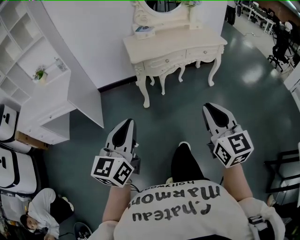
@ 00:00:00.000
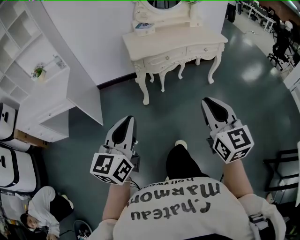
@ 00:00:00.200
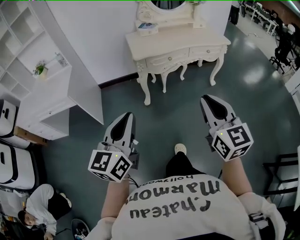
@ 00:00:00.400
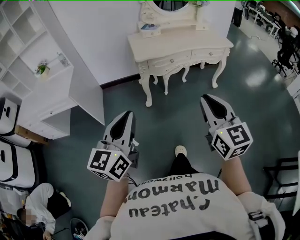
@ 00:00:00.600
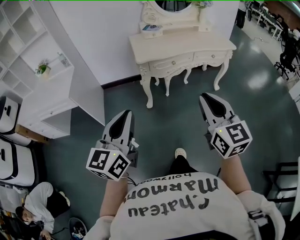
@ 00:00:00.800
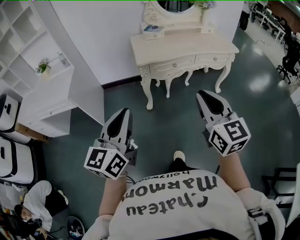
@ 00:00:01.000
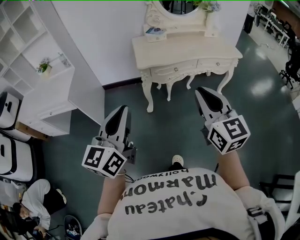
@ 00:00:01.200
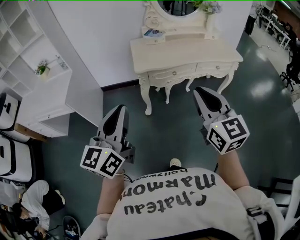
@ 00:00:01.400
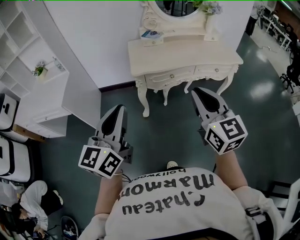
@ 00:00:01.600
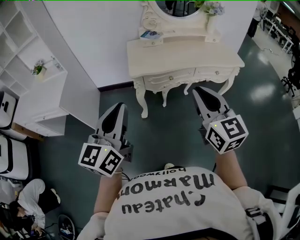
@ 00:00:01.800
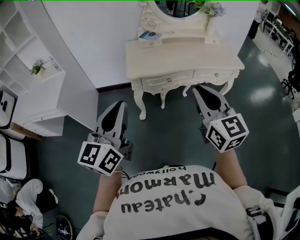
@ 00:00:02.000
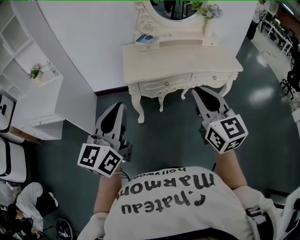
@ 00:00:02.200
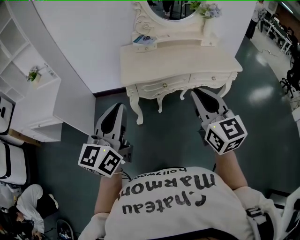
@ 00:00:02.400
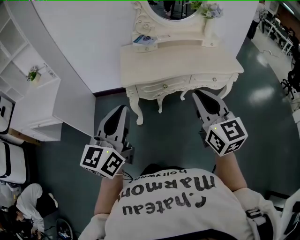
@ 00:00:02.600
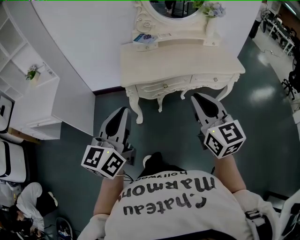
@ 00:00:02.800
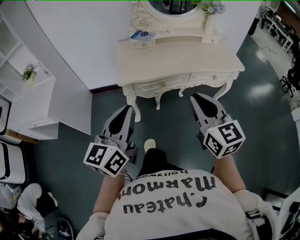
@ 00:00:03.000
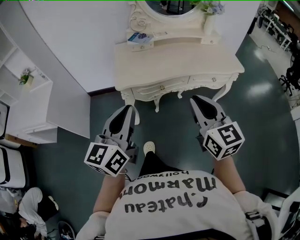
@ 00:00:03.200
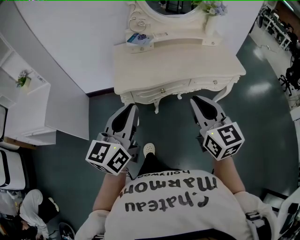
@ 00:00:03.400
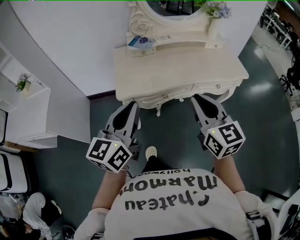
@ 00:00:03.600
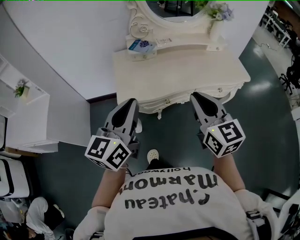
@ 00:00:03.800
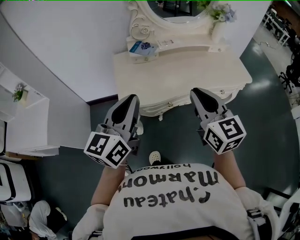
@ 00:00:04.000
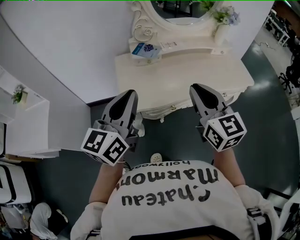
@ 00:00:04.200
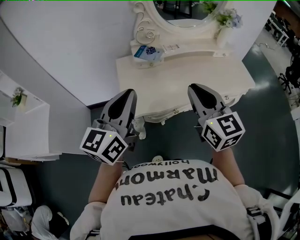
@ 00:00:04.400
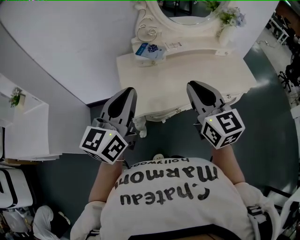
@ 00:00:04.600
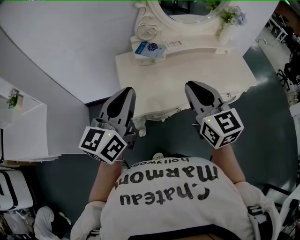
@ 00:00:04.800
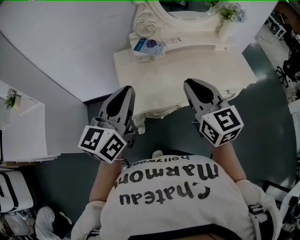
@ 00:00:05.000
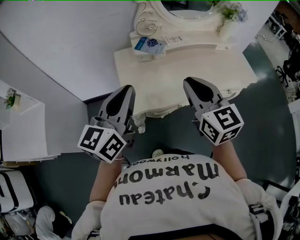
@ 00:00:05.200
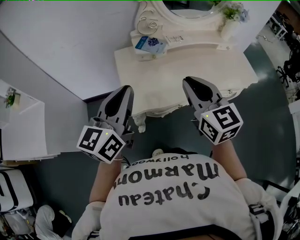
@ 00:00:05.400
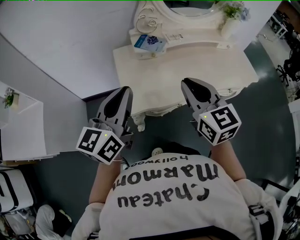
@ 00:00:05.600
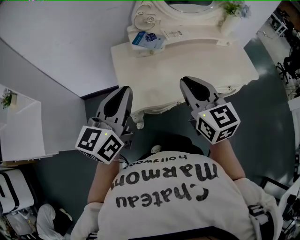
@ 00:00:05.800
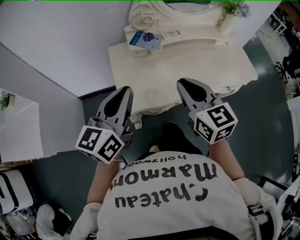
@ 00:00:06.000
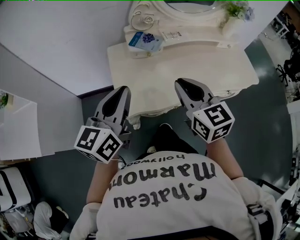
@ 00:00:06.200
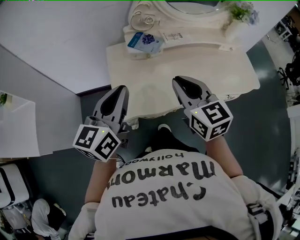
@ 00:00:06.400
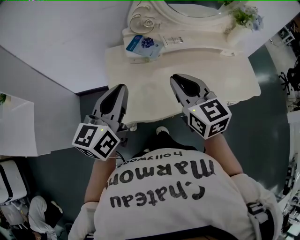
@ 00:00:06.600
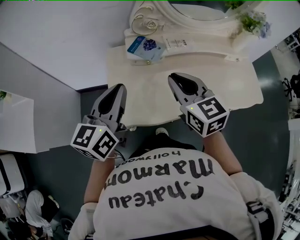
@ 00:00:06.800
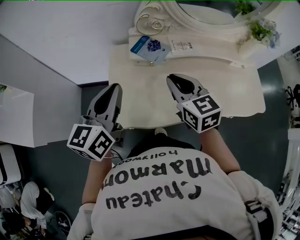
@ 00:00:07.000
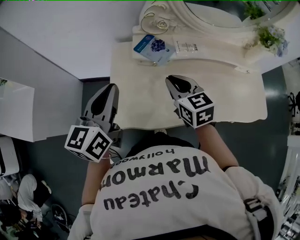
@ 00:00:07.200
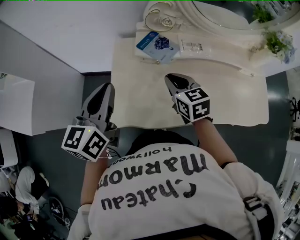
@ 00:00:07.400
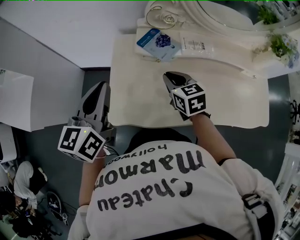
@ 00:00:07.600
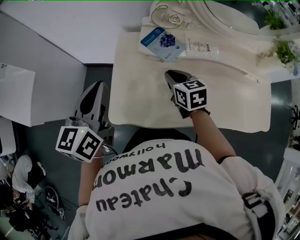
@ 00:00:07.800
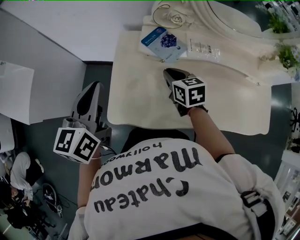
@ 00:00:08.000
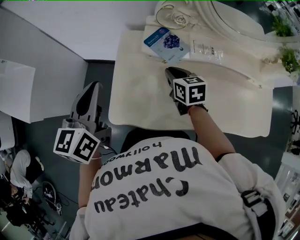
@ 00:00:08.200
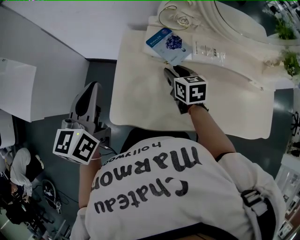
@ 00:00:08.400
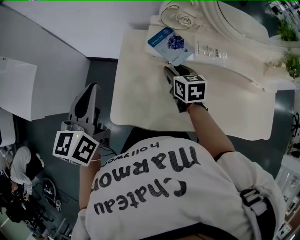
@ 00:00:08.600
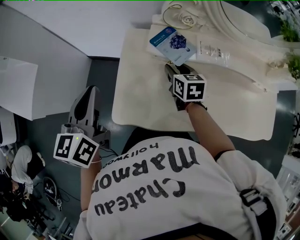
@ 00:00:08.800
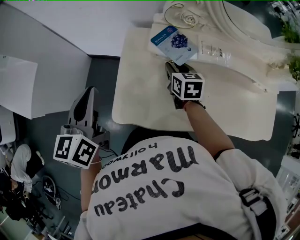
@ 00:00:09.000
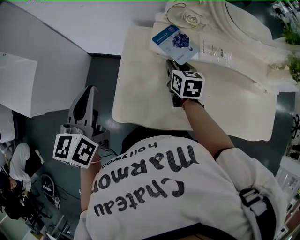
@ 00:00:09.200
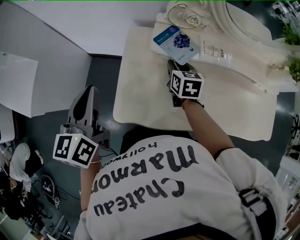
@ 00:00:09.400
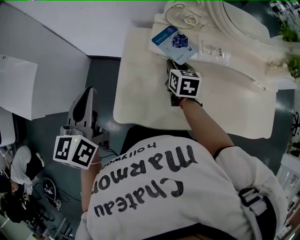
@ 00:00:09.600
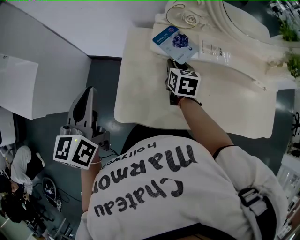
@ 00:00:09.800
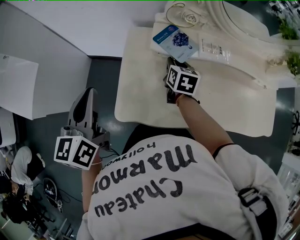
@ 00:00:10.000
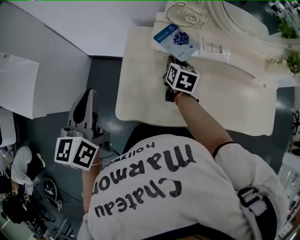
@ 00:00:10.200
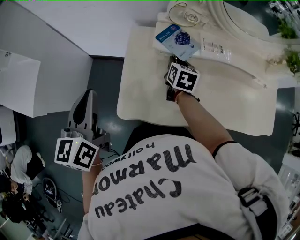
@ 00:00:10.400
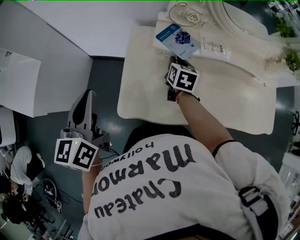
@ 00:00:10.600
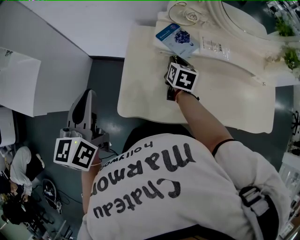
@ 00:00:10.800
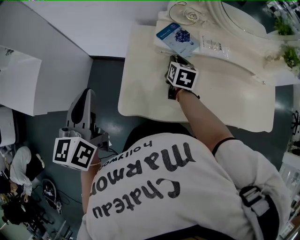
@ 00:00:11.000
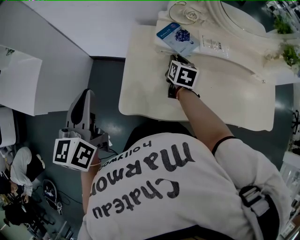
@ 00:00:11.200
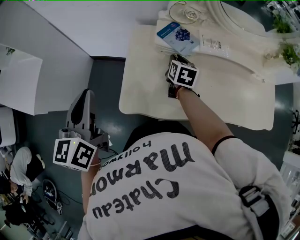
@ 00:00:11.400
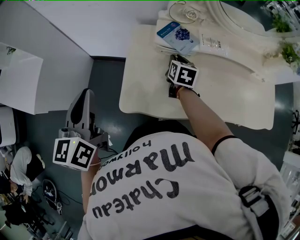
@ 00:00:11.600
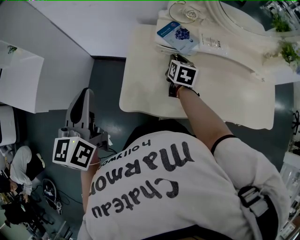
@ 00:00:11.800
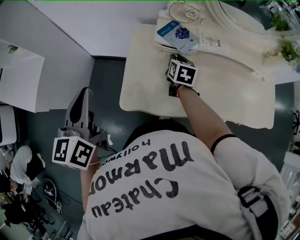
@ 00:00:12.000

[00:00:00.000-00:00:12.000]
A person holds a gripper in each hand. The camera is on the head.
00:00:00.000 to 00:00:01.600: The two grippers go some 20 cm forward.
00:00:01.600 to 00:00:03.000: Both grippers travel together forward and to the right, about 15 cm.
00:00:03.000 to 00:00:04.400: Both grippers move forward, roughly 25 cm.
00:00:04.400 to 00:00:06.000: Both grippers travel together downward, about 5 cm.
00:00:06.000 to 00:00:07.600: The right gripper travels forward and downward by about 25 cm, and swivels some 30 degrees, while the left gripper moves forward, roughly 10 cm, and rotates some 30 degrees.
00:00:07.600 to 00:00:09.000: The left gripper heads to the left, covering some 5 cm, while the right gripper moves forward, roughly 10 cm, and opens up.
00:00:09.000 to 00:00:10.400: There are only small adjustments of the grippers.
00:00:10.400 to 00:00:12.000: The grippers stay close to where they were, moving slightly.

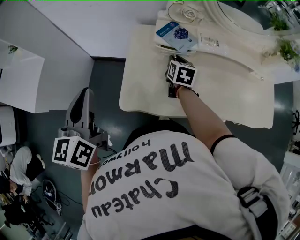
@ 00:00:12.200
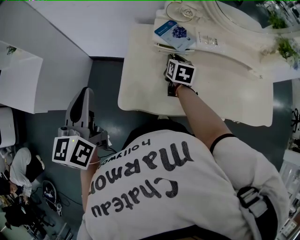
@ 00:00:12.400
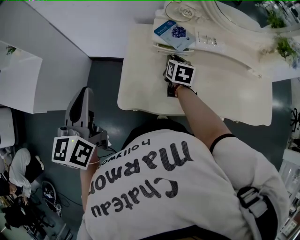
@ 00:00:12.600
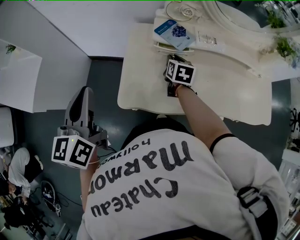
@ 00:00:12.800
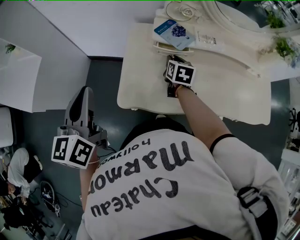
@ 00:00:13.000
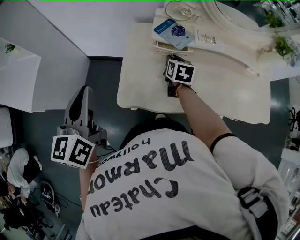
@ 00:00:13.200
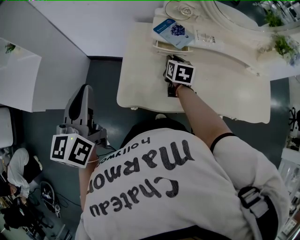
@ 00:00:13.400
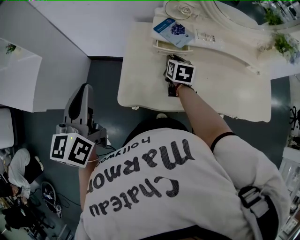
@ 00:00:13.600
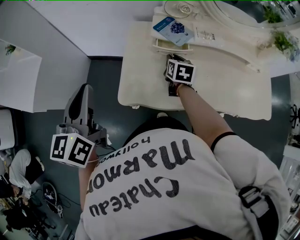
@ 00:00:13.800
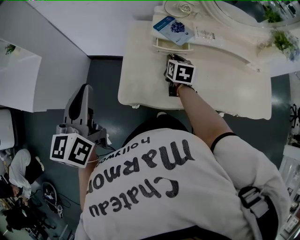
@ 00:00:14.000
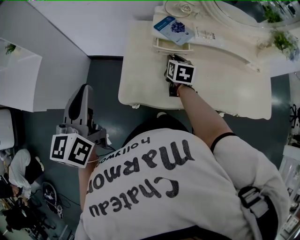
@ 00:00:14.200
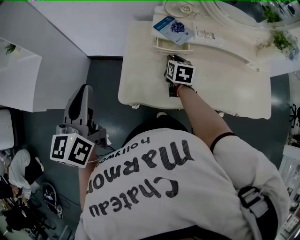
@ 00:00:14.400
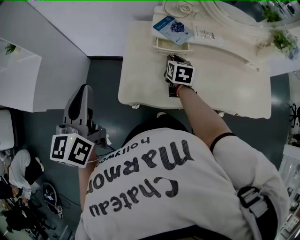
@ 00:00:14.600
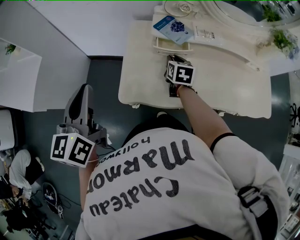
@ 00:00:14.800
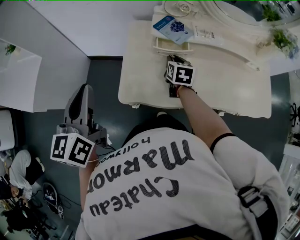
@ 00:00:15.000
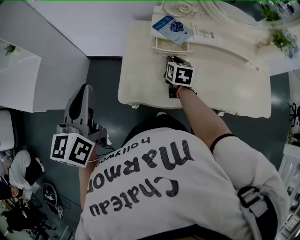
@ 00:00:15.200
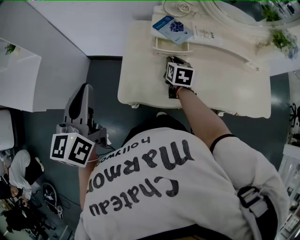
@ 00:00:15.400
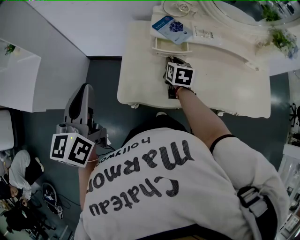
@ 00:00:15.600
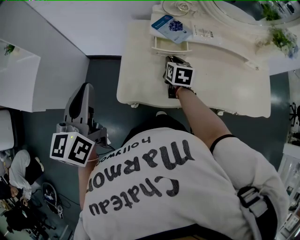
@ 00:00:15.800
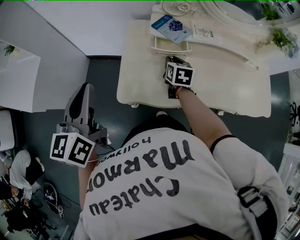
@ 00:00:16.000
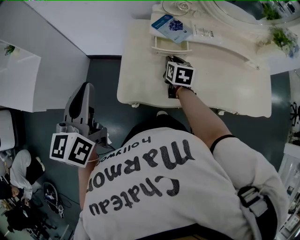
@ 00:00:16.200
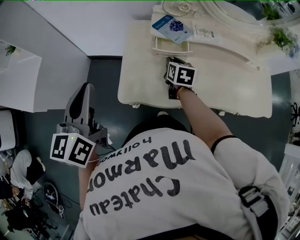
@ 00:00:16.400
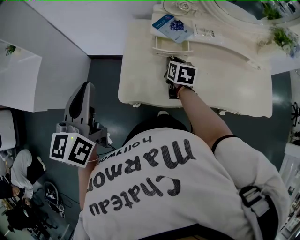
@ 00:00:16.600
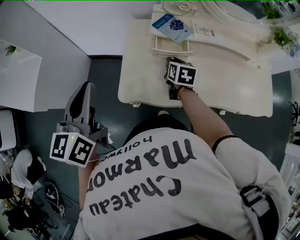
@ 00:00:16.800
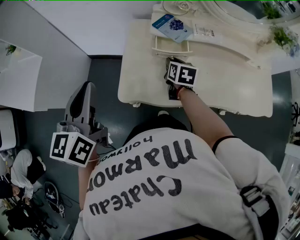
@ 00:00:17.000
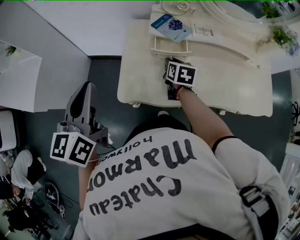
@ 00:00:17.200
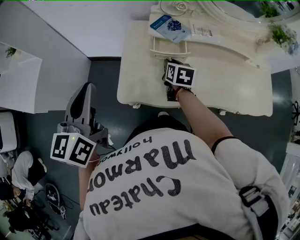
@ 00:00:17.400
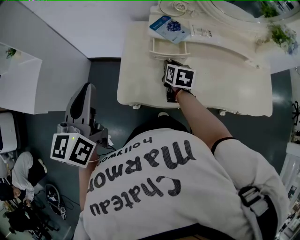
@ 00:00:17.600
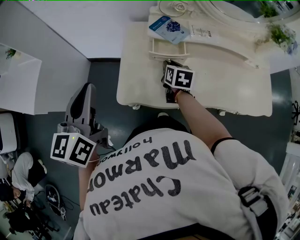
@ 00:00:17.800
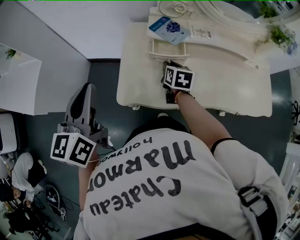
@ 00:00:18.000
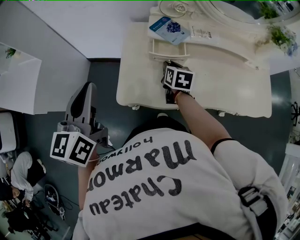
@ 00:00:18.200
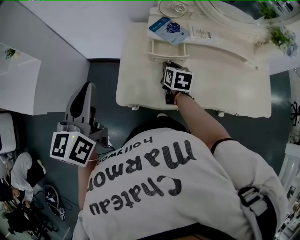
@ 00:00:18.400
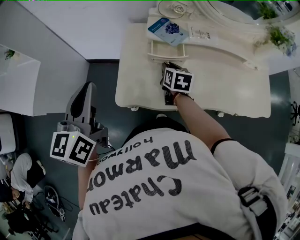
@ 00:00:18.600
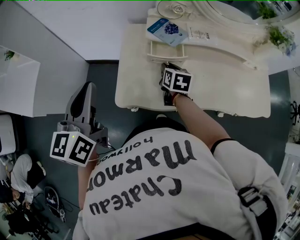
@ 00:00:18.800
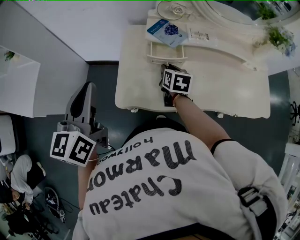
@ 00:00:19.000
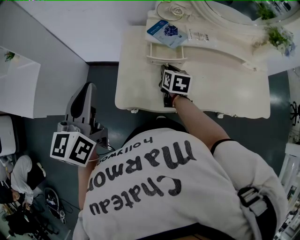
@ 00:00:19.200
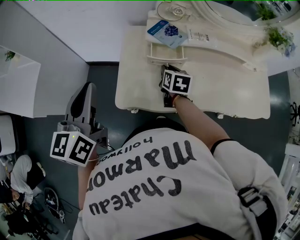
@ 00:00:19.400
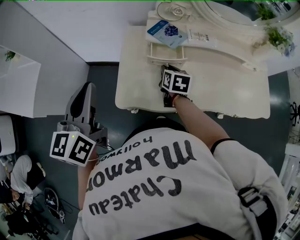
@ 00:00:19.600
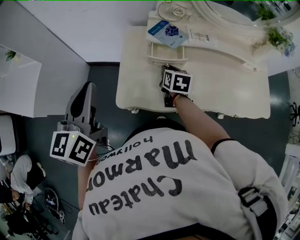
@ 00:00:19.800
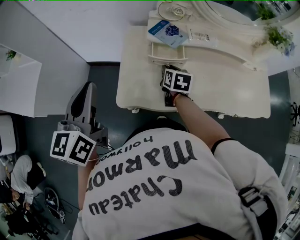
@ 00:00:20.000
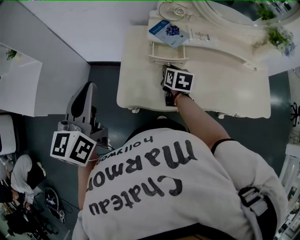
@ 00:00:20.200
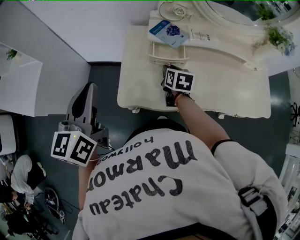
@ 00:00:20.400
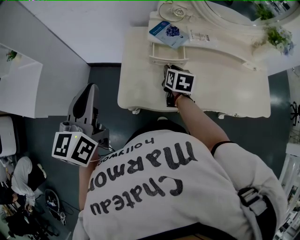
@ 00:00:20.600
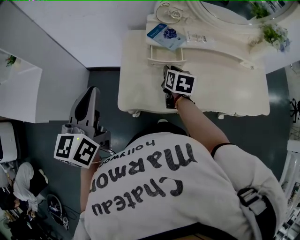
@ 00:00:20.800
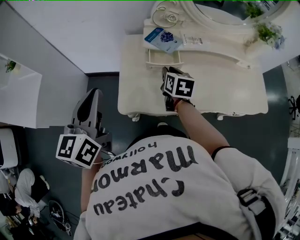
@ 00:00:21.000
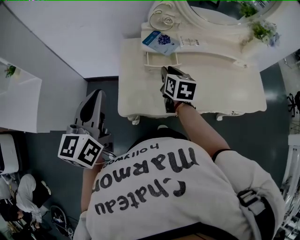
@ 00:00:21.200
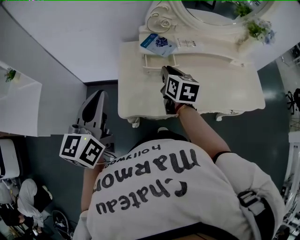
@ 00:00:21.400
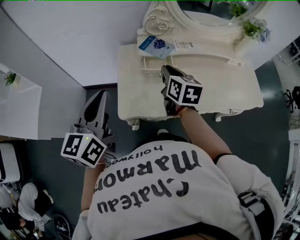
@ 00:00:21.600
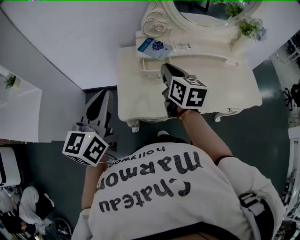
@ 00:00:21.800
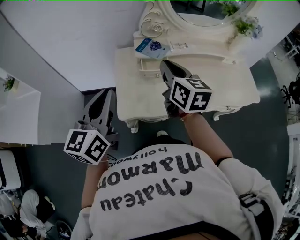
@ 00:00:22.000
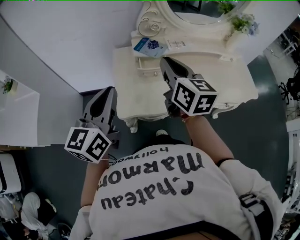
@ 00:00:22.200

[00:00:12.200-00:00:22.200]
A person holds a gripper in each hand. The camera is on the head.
00:00:12.200 to 00:00:15.000: There are only small adjustments of the grippers.
00:00:15.000 to 00:00:16.400: Neither gripper changes place.
00:00:16.400 to 00:00:18.000: There are only small adjustments of the grippers.
00:00:18.000 to 00:00:19.400: Neither gripper changes place.
00:00:19.400 to 00:00:20.800: The grippers stay close to where they were, moving slightly.
00:00:20.800 to 00:00:22.200: The left gripper shifts approximately 5 cm to the right. Meanwhile the right gripper moves upward, approximately 25 cm, and points its fingers roughly 30 degrees further upward.

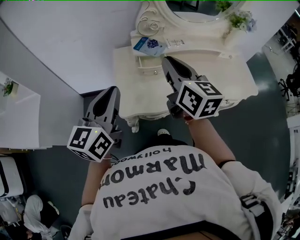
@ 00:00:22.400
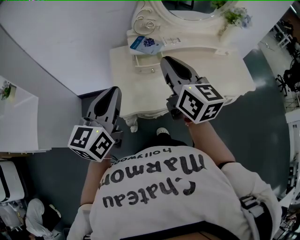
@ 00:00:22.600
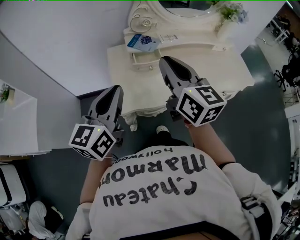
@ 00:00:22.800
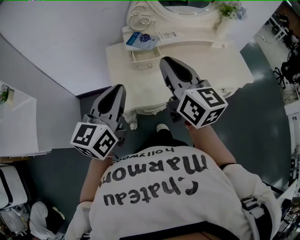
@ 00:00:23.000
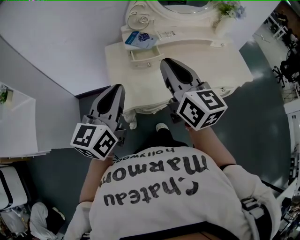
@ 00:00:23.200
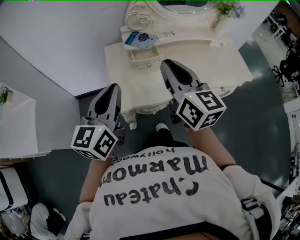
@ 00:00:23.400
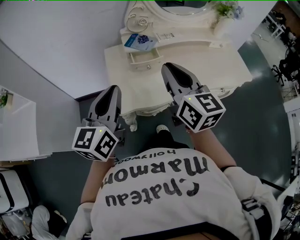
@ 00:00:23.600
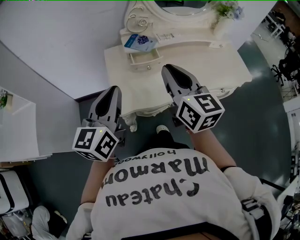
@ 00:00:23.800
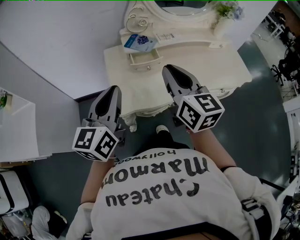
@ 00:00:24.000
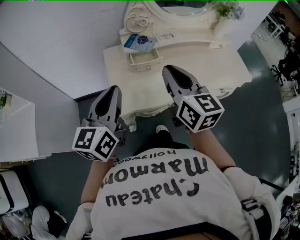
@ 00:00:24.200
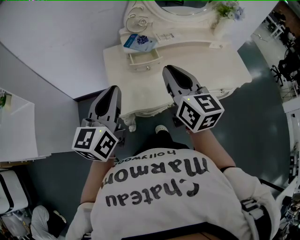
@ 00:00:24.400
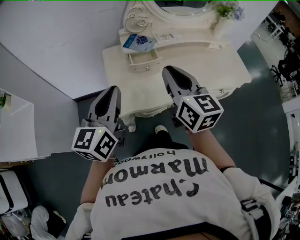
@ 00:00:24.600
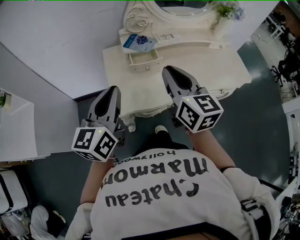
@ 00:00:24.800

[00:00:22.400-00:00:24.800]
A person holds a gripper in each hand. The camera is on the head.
00:00:22.400 to 00:00:23.600: The right gripper travels backward by roughly 5 cm.
00:00:23.600 to 00:00:24.800: There are only small adjustments of the grippers.
